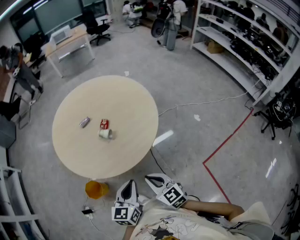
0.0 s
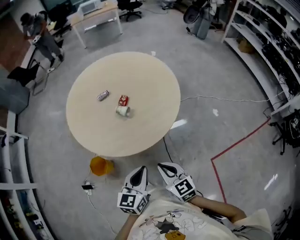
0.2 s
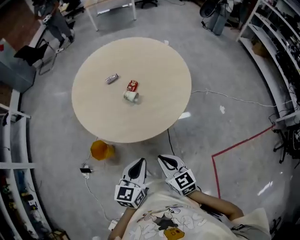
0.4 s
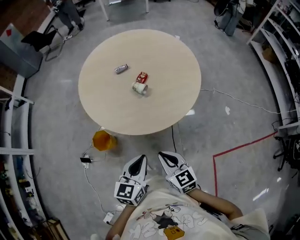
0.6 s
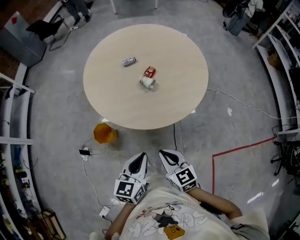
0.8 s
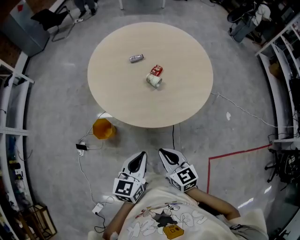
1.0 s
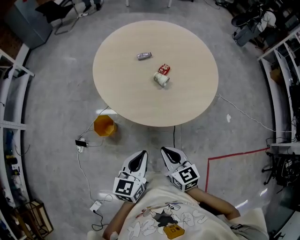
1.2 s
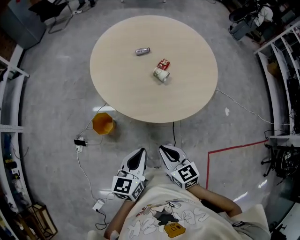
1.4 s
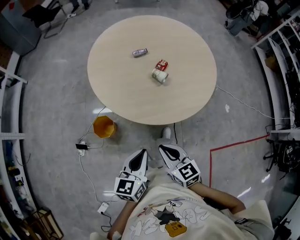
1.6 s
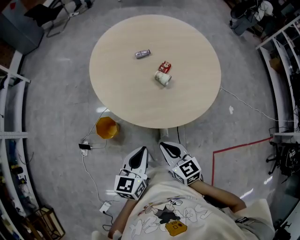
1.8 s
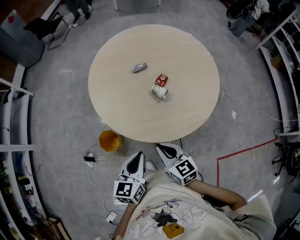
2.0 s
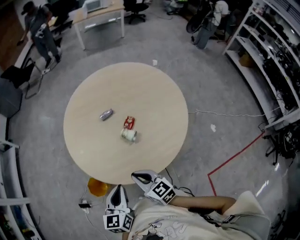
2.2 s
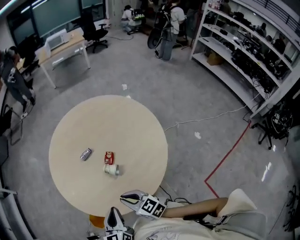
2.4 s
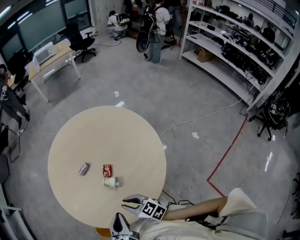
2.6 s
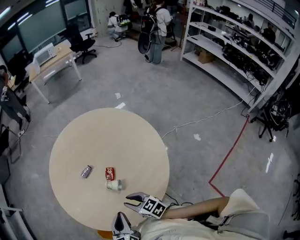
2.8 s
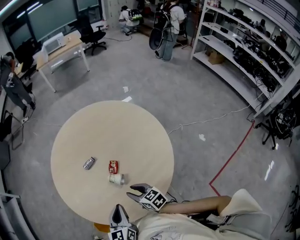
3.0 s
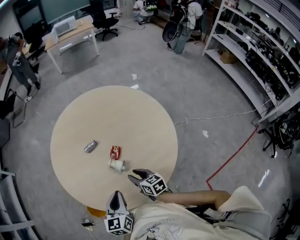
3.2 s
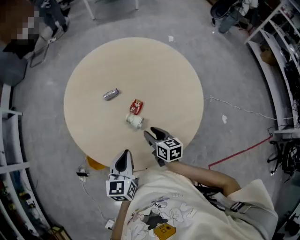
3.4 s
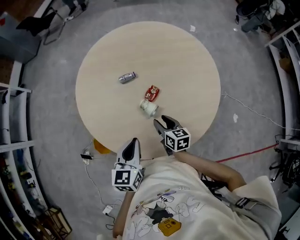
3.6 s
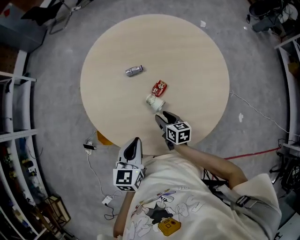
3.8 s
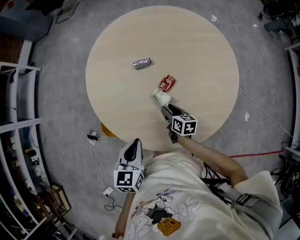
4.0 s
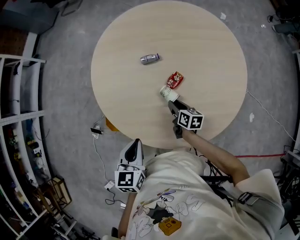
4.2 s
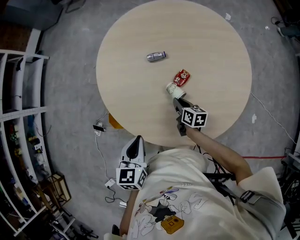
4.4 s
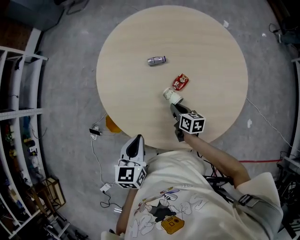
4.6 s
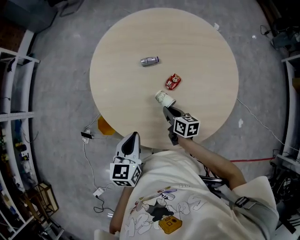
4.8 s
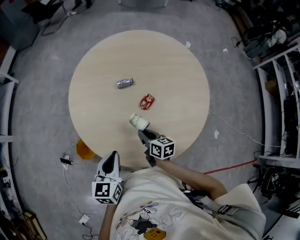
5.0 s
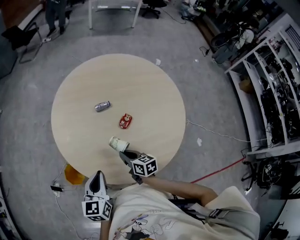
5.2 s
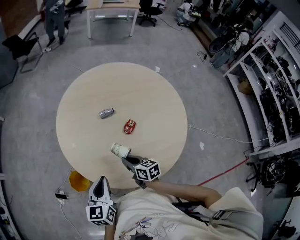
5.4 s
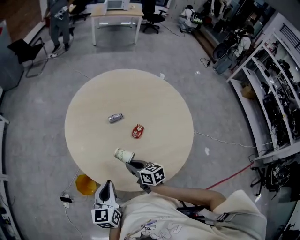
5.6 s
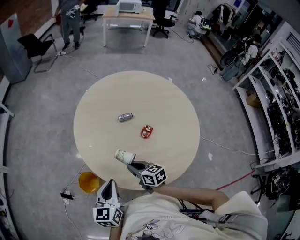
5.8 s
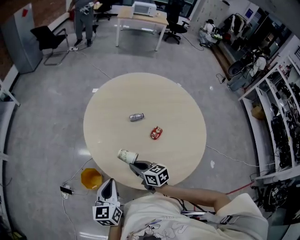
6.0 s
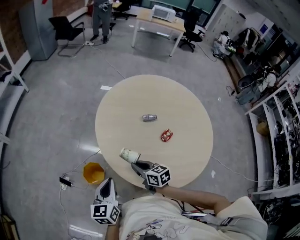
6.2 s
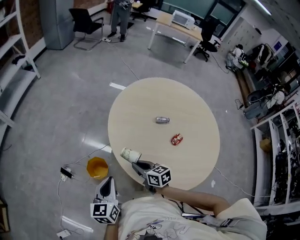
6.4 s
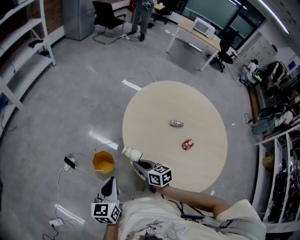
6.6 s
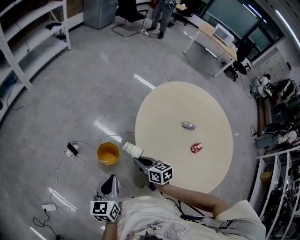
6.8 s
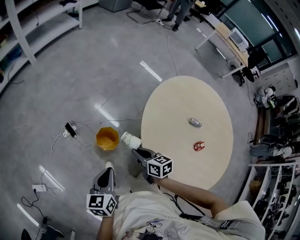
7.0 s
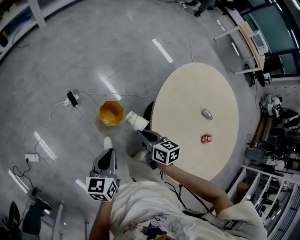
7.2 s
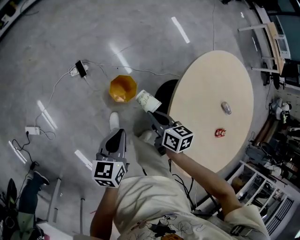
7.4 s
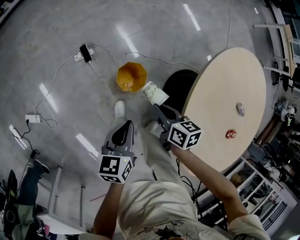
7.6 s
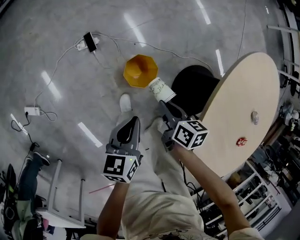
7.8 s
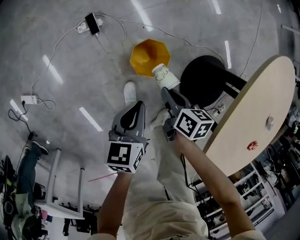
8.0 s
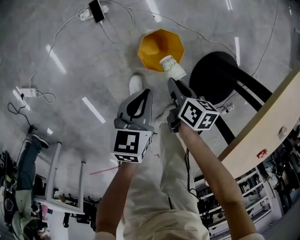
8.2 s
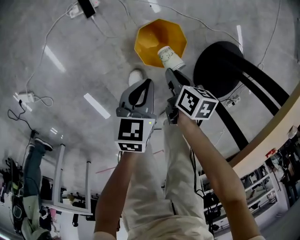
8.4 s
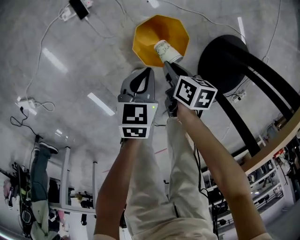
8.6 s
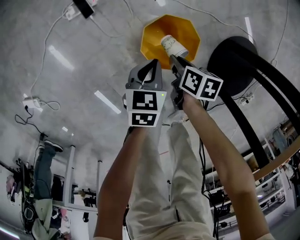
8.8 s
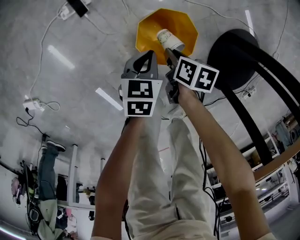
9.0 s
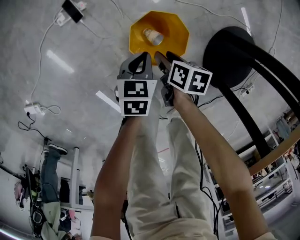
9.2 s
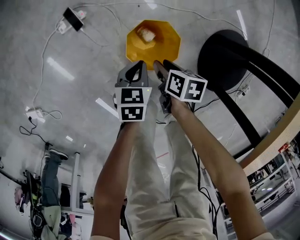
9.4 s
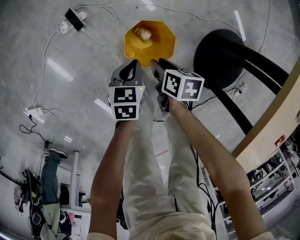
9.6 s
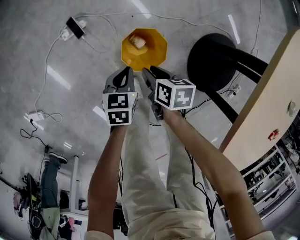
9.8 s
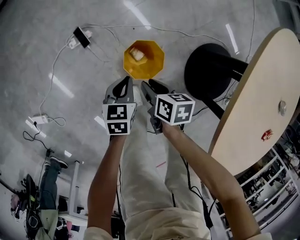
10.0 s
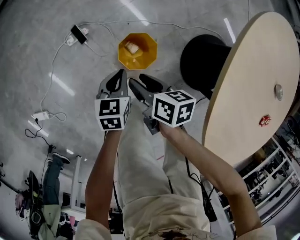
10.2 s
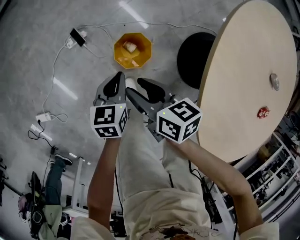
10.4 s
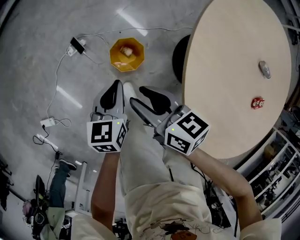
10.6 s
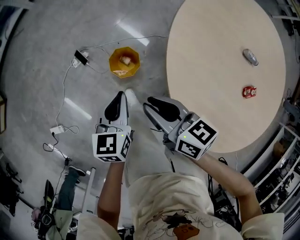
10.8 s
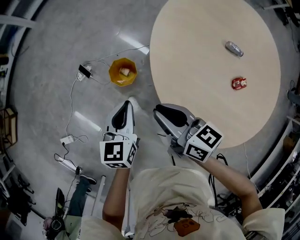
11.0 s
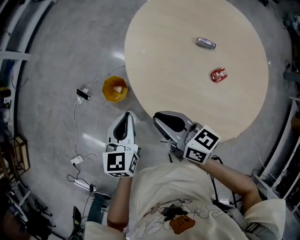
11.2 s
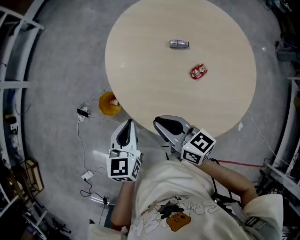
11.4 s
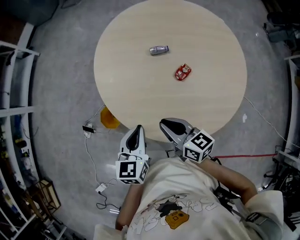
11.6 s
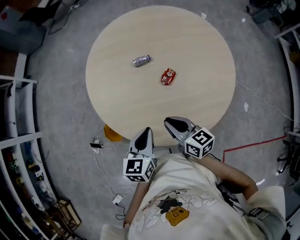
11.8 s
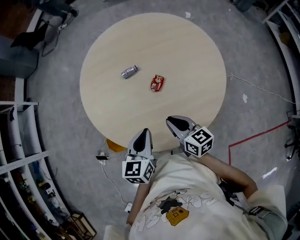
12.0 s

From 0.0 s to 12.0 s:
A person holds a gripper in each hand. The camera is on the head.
From 0.0 s to 1.6 s: The right gripper goes some 15 cm to the left and forward. The left gripper travels to the left by about 15 cm.
From 1.6 s to 3.0 s: The two grippers go about 30 cm forward and to the right. The right gripper opens its fingers.
From 3.0 s to 4.4 s: The right gripper travels downward and forward by approximately 15 cm, and closes up; the left gripper heads to the left, covering some 5 cm, and turns by some 20 degrees.
From 4.4 s to 6.0 s: The right gripper shifts about 25 cm to the left and upward, and rotates roughly 30 degrees. The left gripper travels to the left by about 15 cm.
From 6.0 s to 7.6 s: The left gripper changes place by some 35 cm, and turns by roughly 50 degrees; the right gripper ends up about 35 cm from where it was, and swivels about 40 degrees.
From 7.6 s to 9.0 s: Both grippers move downward, approximately 50 cm. The left gripper rotates some 20 degrees; the right gripper rotates some 30 degrees.
From 9.0 s to 10.4 s: The two grippers go approximately 35 cm upward. The right gripper changes its angle by roughly 30 degrees, and opens its fingers.
From 10.4 s to 12.0 s: Both grippers are carried roughly 50 cm. The left gripper swivels about 50 degrees; the right gripper swivels roughly 60 degrees, and closes up.

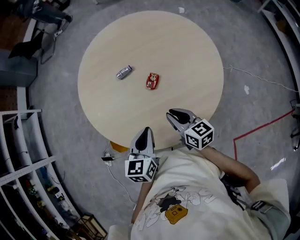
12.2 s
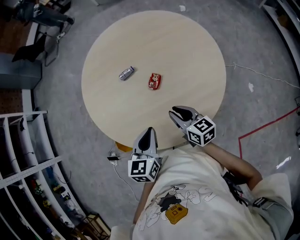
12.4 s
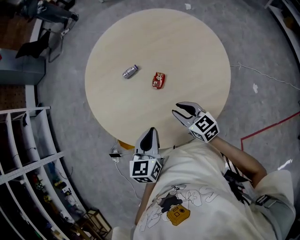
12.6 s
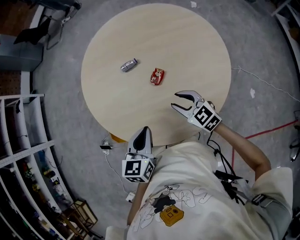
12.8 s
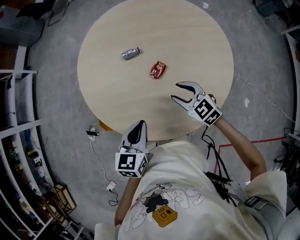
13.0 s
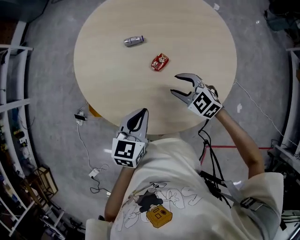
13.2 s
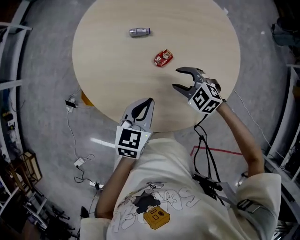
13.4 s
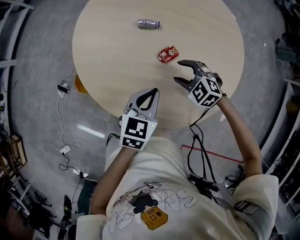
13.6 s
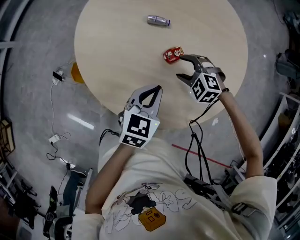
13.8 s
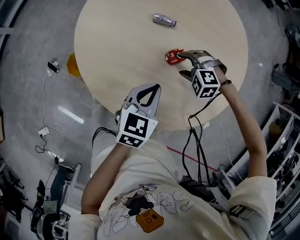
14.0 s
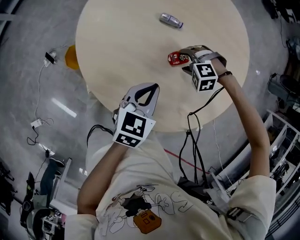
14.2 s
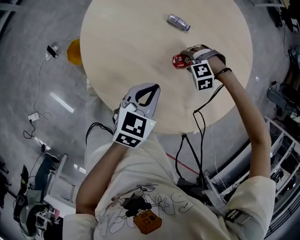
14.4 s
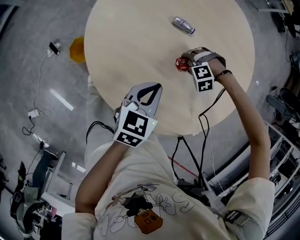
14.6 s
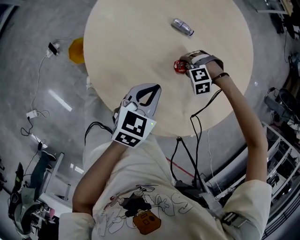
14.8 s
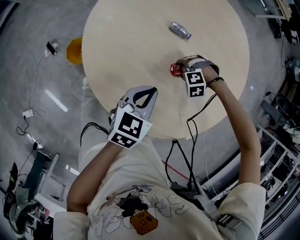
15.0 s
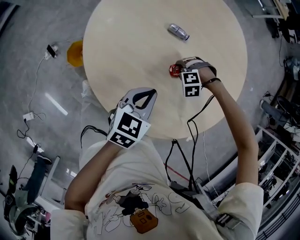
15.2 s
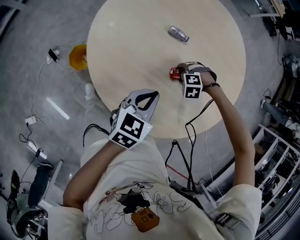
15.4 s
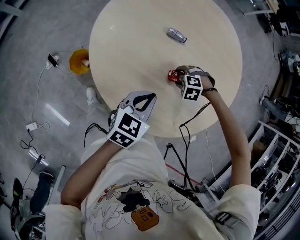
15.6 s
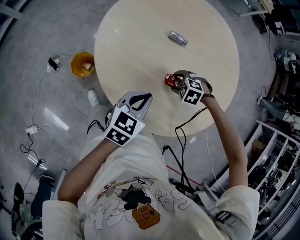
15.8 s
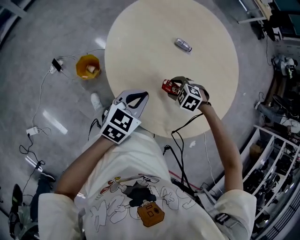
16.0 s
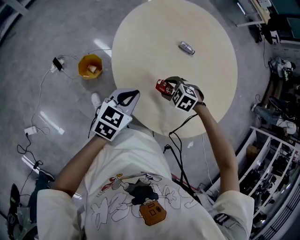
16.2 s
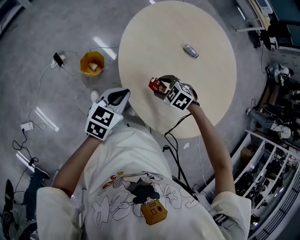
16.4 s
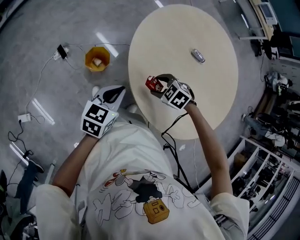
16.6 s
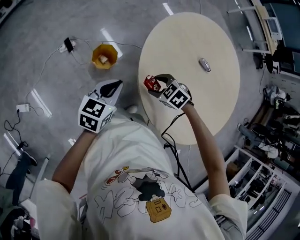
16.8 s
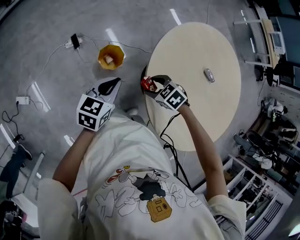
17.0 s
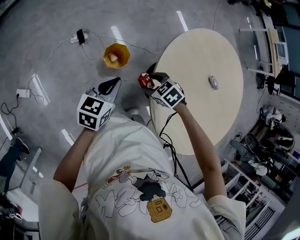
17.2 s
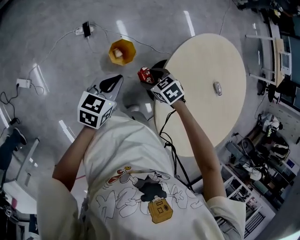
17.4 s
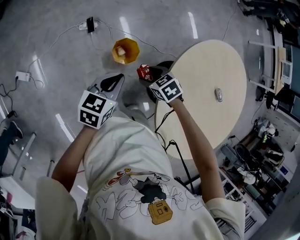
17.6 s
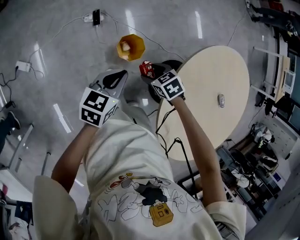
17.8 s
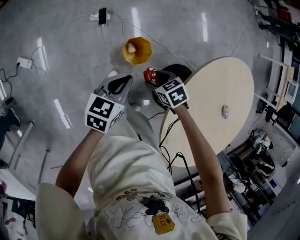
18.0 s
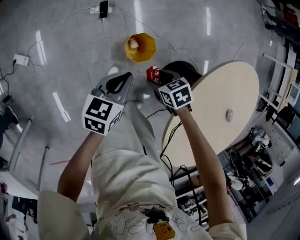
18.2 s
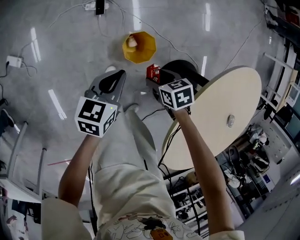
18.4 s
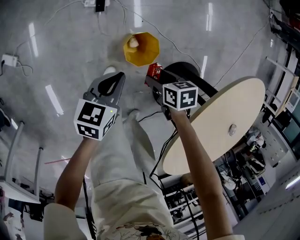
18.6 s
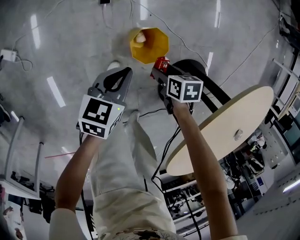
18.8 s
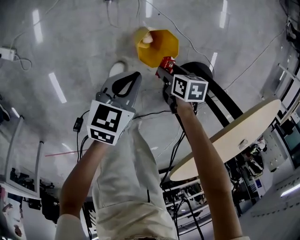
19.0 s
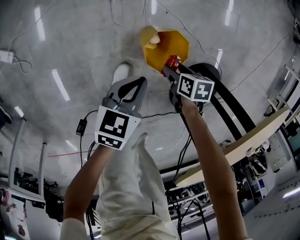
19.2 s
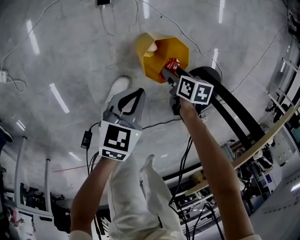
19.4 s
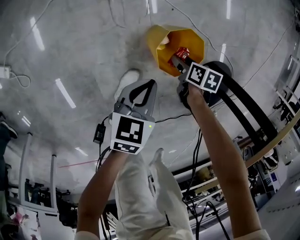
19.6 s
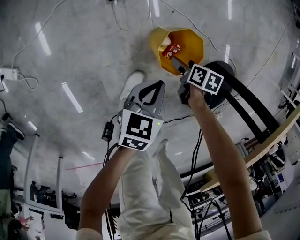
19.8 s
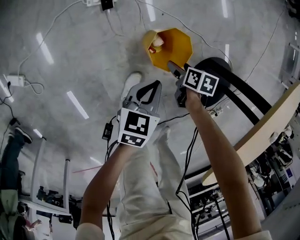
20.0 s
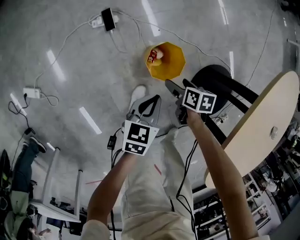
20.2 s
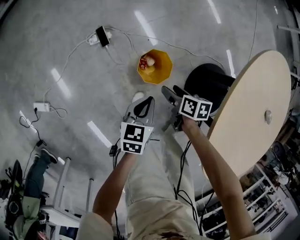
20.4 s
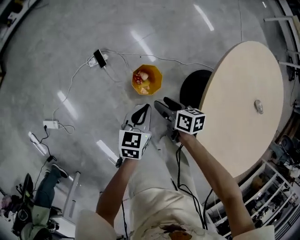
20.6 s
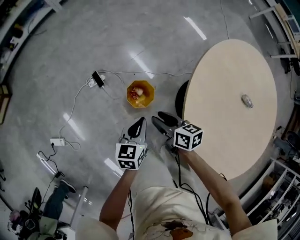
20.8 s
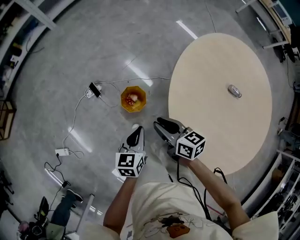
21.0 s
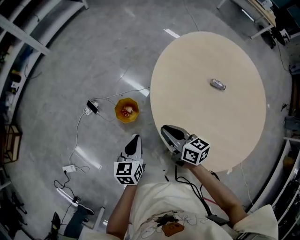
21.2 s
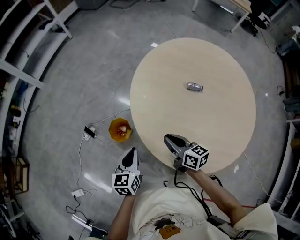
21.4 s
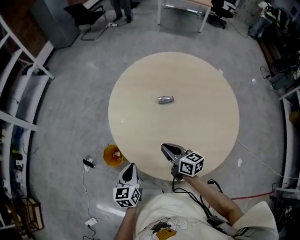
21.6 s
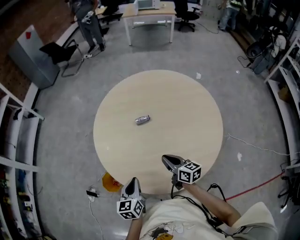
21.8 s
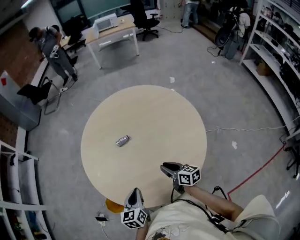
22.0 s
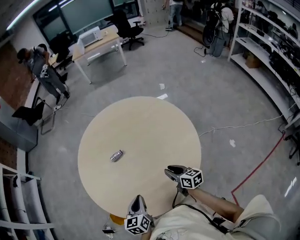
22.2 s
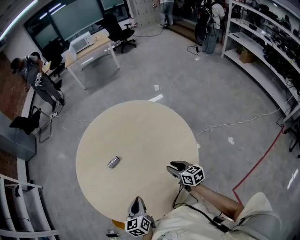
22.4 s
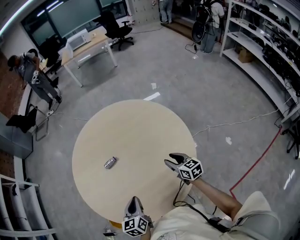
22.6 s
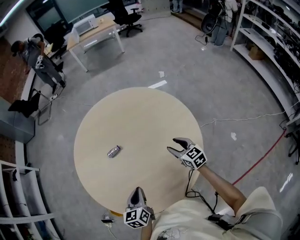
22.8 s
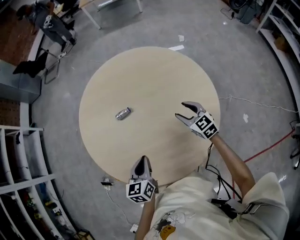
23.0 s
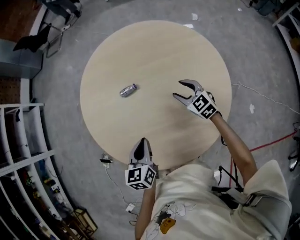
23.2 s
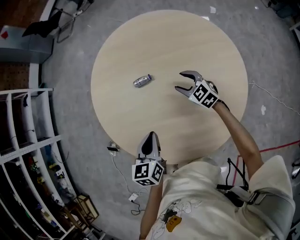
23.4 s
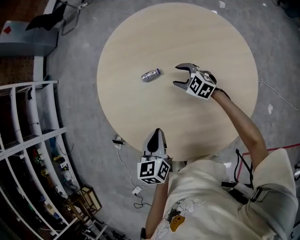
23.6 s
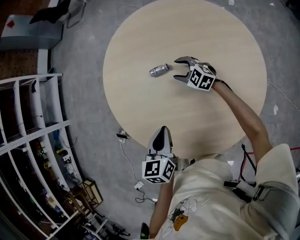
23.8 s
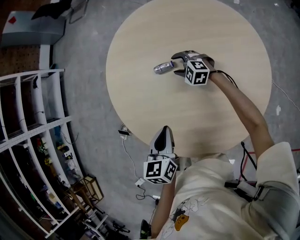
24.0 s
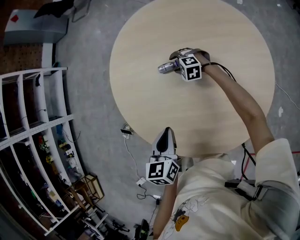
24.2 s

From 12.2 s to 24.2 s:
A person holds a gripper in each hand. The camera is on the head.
From 12.2 s to 13.8 s: The right gripper moves roughly 15 cm, twists about 90 degrees counterclockwise, seen from behind, and opens; the left gripper changes place by about 10 cm.
From 13.8 s to 15.2 s: The right gripper goes some 10 cm downward, and swivels roughly 50 degrees.
From 15.2 s to 16.6 s: The right gripper shifts by about 35 cm, and turns by approximately 40 degrees. The left gripper ends up some 30 cm from where it was.
From 16.6 s to 18.2 s: The left gripper ends up approximately 30 cm from where it was, and swivels approximately 40 degrees. The right gripper ends up some 35 cm from where it was.
From 18.2 s to 19.8 s: Both grippers travel together downward, approximately 35 cm. The right gripper twists about 40 degrees clockwise, seen from behind.
From 19.8 s to 21.2 s: The left gripper moves upward and to the right, approximately 40 cm, and rotates approximately 20 degrees; the right gripper travels upward by some 60 cm, tilts its fingers approximately 50 degrees upward, and closes.
From 21.2 s to 22.6 s: Both grippers are carried about 50 cm. The right gripper turns by about 60 degrees, and opens. Meanwhile the left gripper turns by about 40 degrees.
From 22.6 s to 24.2 s: The left gripper ends up roughly 10 cm from where it was, and changes its angle by approximately 20 degrees; the right gripper shifts by roughly 40 cm, and twists some 80 degrees counterclockwise, seen from behind.
